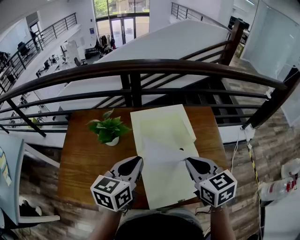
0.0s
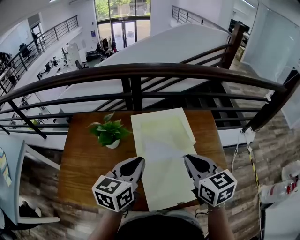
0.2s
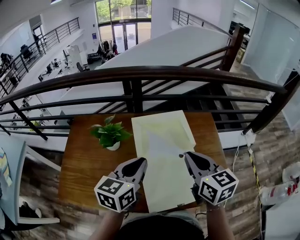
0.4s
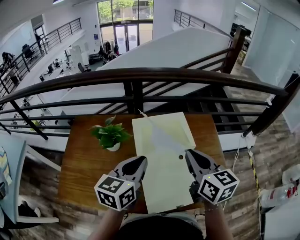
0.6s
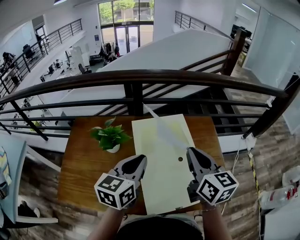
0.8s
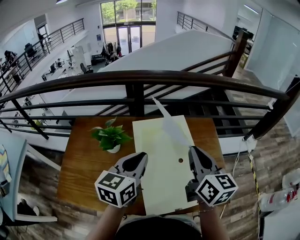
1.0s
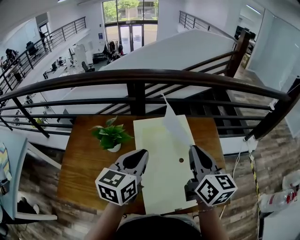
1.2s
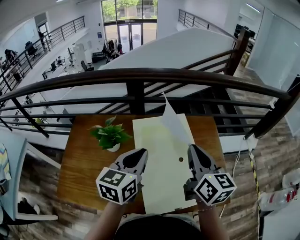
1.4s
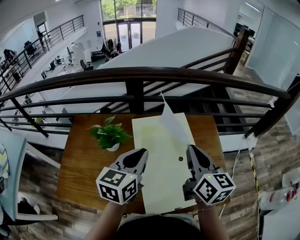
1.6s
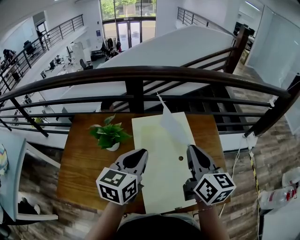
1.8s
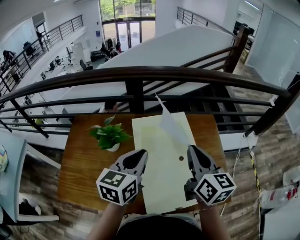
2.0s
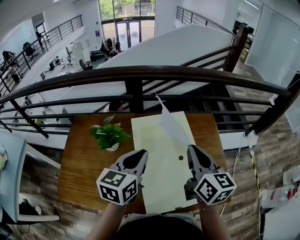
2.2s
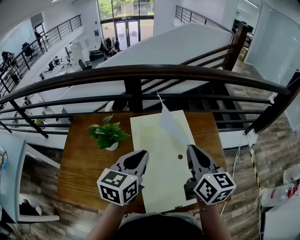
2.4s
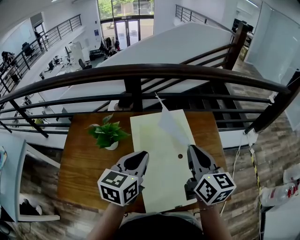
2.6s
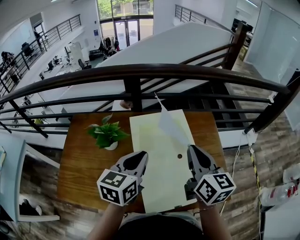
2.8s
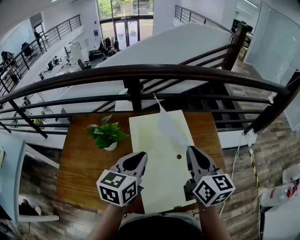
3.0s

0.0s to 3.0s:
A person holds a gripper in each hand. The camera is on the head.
0.0s to 1.6s: The right gripper shifts roughly 10 cm upward and forward, and rotates about 30 degrees; the left gripper changes place by about 5 cm.
1.6s to 3.0s: The grippers make only small movements.

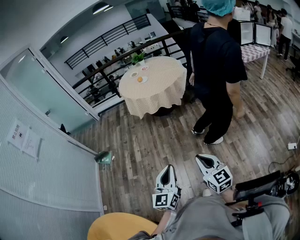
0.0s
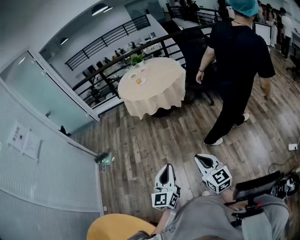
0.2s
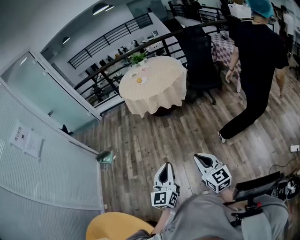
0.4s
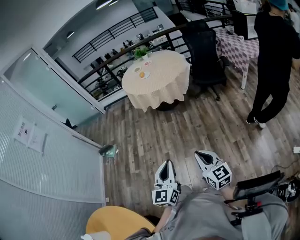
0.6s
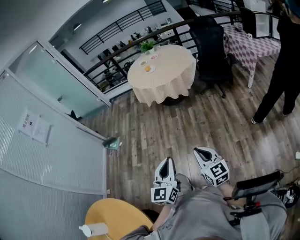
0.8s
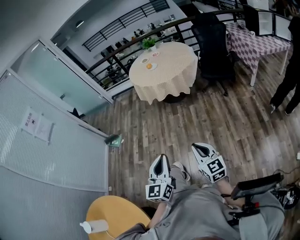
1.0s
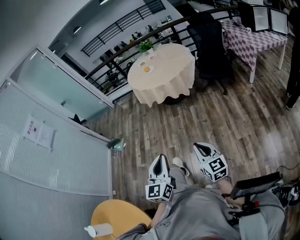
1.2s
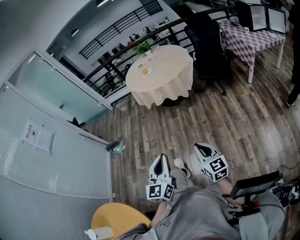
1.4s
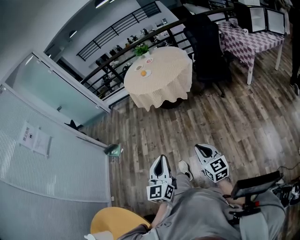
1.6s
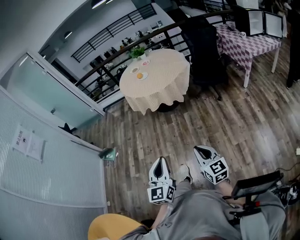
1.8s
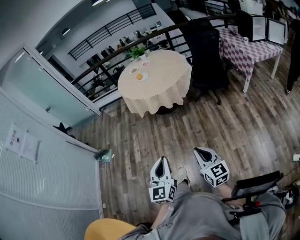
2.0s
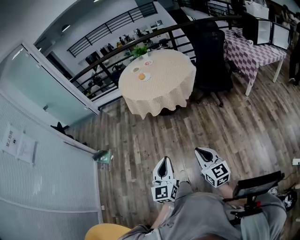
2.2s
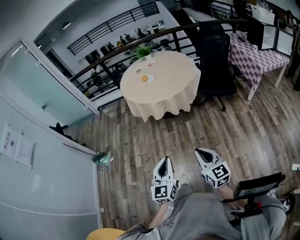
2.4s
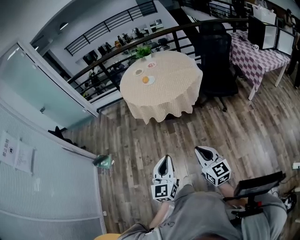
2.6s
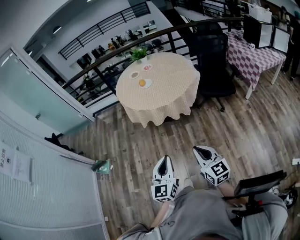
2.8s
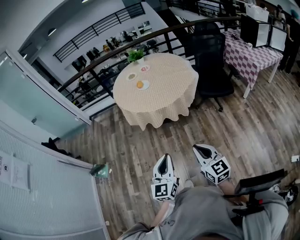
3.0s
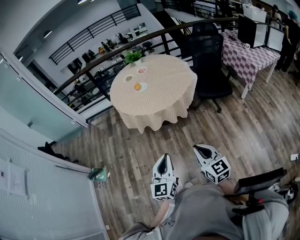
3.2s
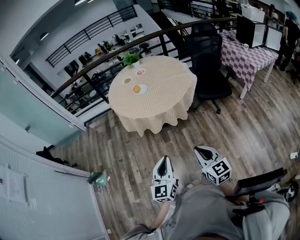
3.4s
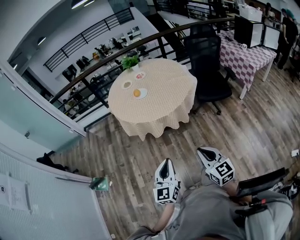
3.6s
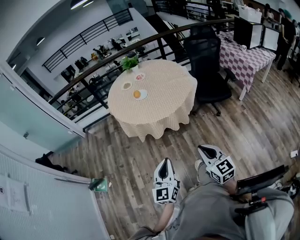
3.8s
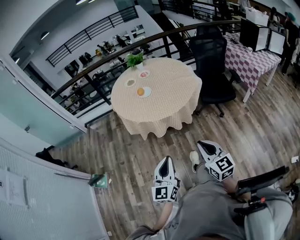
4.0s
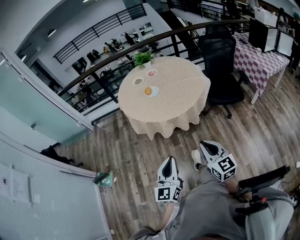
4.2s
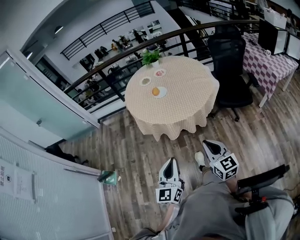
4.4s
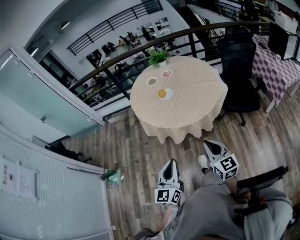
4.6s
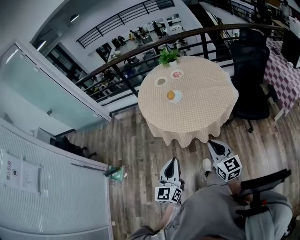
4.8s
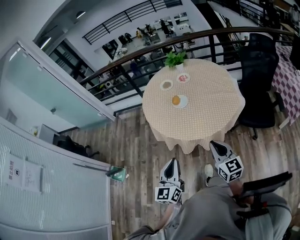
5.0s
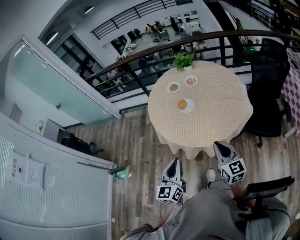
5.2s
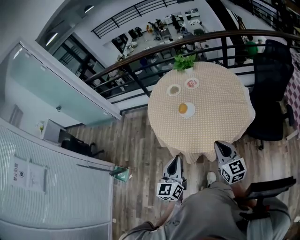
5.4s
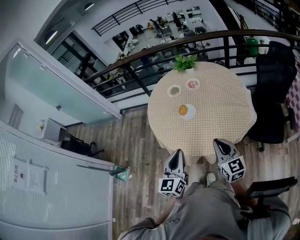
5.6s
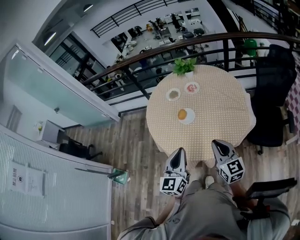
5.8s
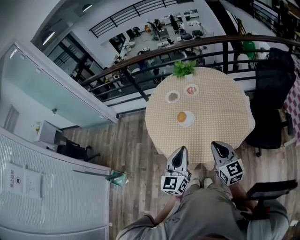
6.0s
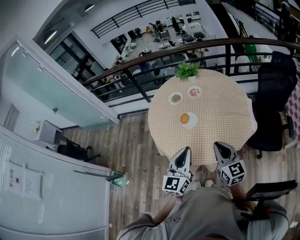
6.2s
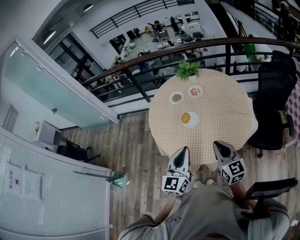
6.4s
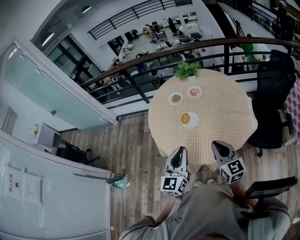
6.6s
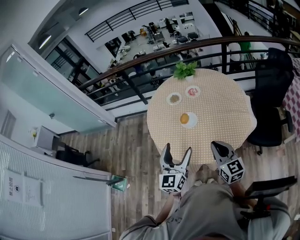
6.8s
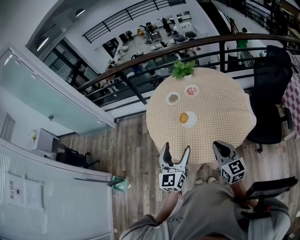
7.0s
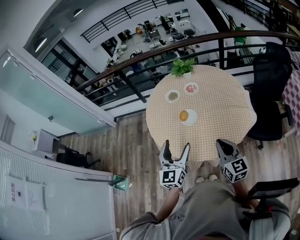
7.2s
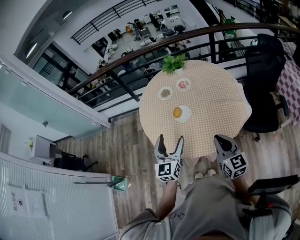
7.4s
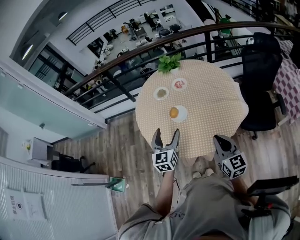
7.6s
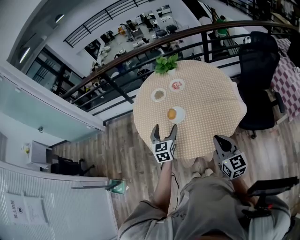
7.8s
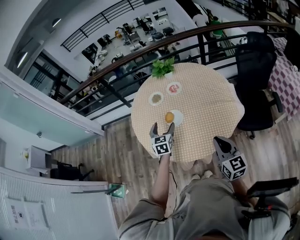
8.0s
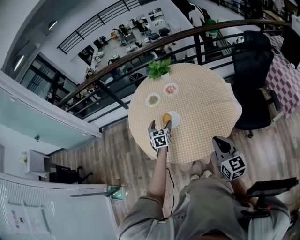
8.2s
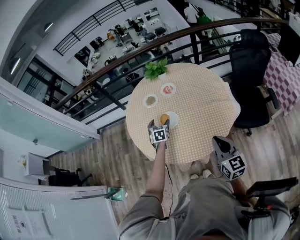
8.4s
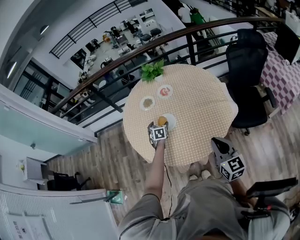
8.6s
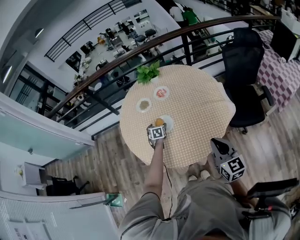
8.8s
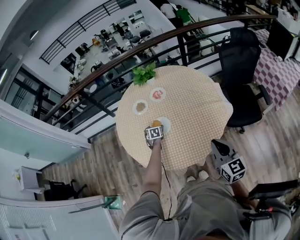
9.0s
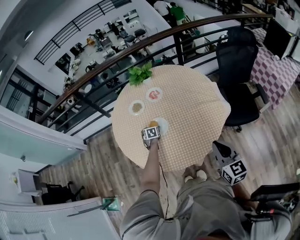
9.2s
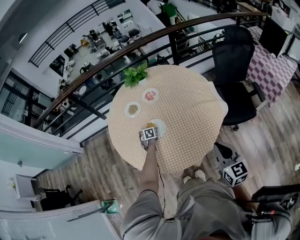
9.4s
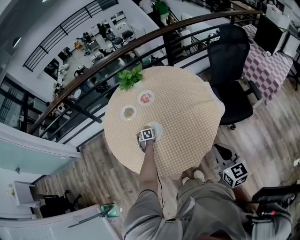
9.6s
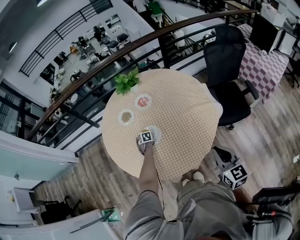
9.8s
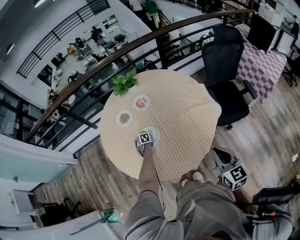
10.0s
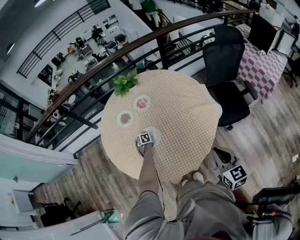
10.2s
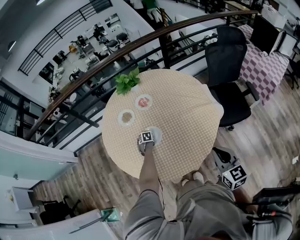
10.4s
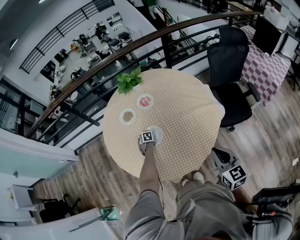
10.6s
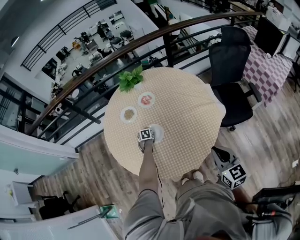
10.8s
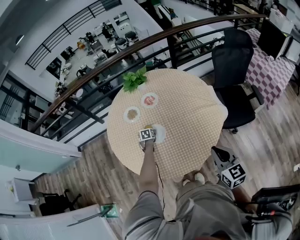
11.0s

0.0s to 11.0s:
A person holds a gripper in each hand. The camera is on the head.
0.0s to 1.6s: The right gripper heads to the right, forward and downward, covering roughly 20 cm; the left gripper travels to the right and forward by roughly 15 cm.
1.6s to 3.2s: The right gripper moves forward and to the left, roughly 40 cm, while the left gripper travels forward by about 40 cm.
3.2s to 4.8s: The grippers both shift forward by approximately 30 cm.
4.8s to 6.2s: The grippers both shift forward by roughly 30 cm.
6.2s to 7.8s: The left gripper shifts approximately 20 cm forward and downward, rotates roughly 20 degrees, and opens.
7.8s to 9.4s: The right gripper moves to the right, some 5 cm. The left gripper is displaced downward and forward by some 35 cm, and tilts its fingers some 40 degrees downward.
9.4s to 11.0s: The left gripper reaches some 10 cm downward, then returns.

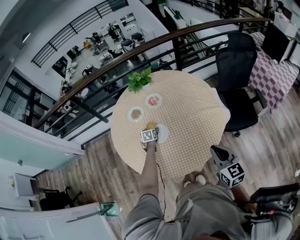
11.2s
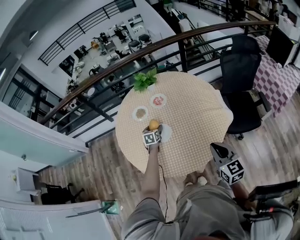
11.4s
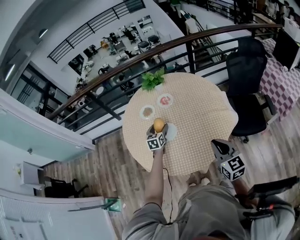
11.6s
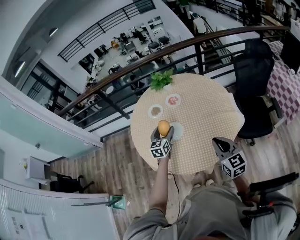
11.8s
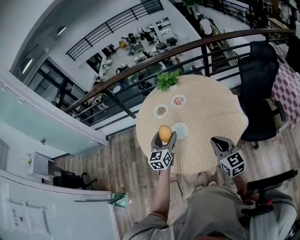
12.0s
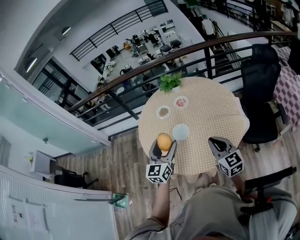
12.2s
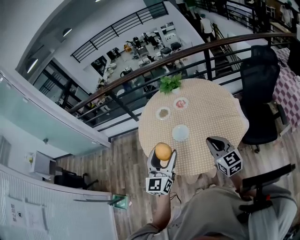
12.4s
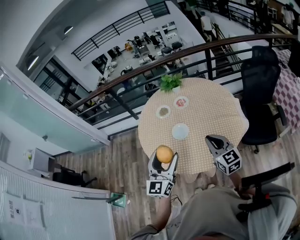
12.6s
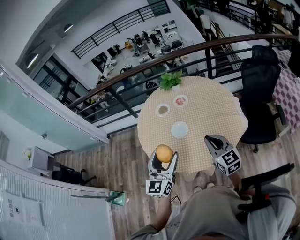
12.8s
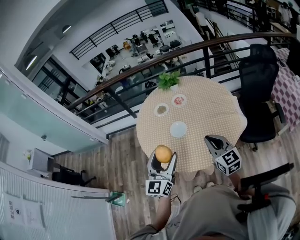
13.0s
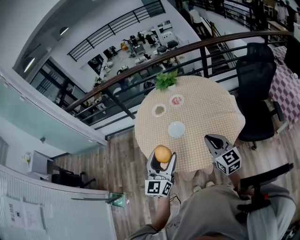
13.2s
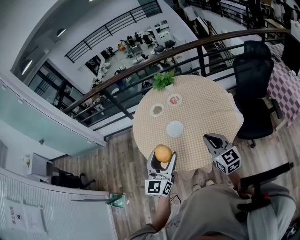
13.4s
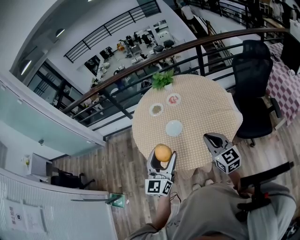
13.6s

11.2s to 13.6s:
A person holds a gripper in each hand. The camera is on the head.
11.2s to 12.4s: The right gripper moves to the left, some 5 cm; the left gripper moves upward and backward, some 50 cm, and points its fingers approximately 60 degrees further upward.
12.4s to 13.6s: The grippers make only small movements.

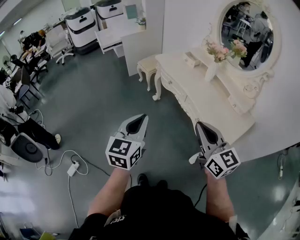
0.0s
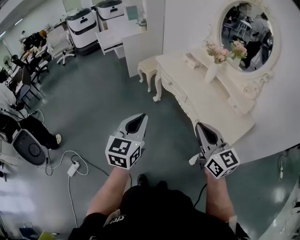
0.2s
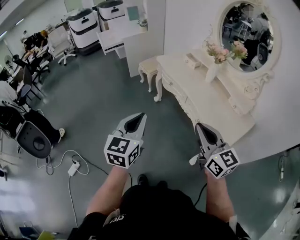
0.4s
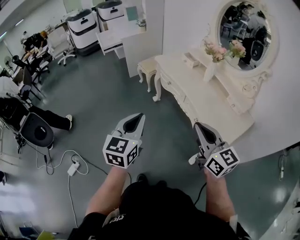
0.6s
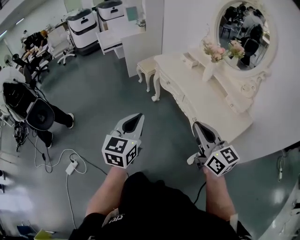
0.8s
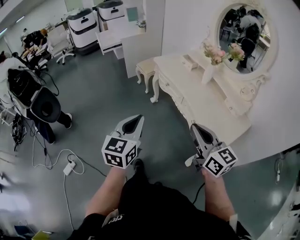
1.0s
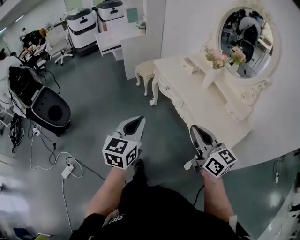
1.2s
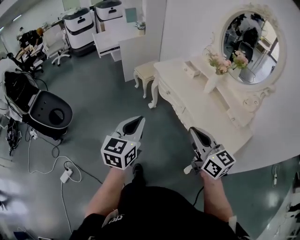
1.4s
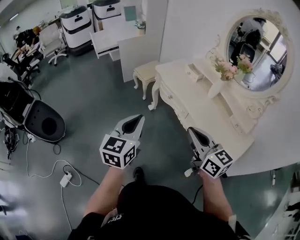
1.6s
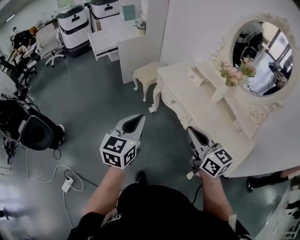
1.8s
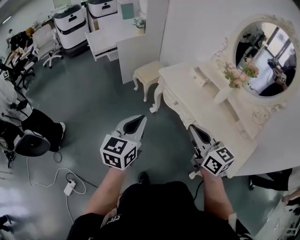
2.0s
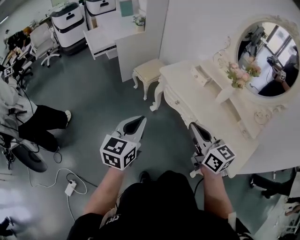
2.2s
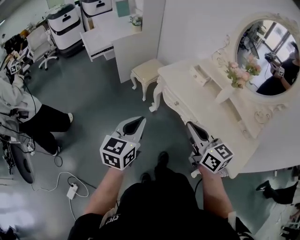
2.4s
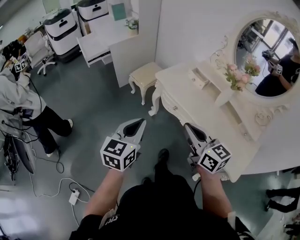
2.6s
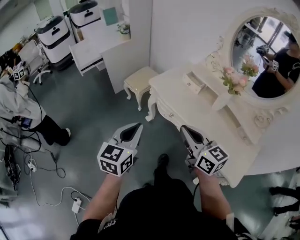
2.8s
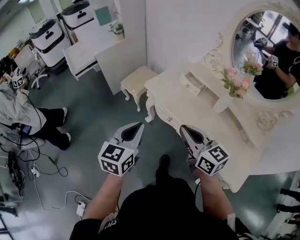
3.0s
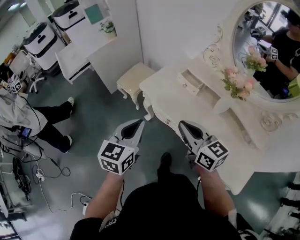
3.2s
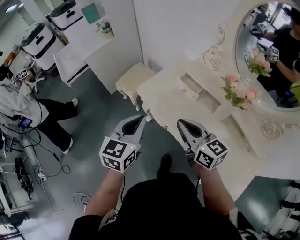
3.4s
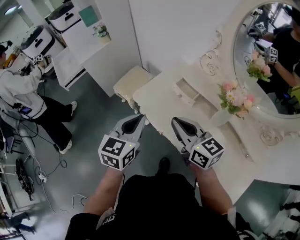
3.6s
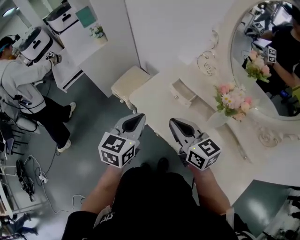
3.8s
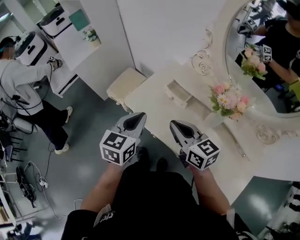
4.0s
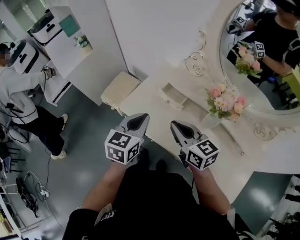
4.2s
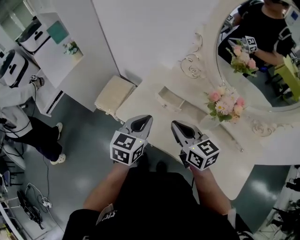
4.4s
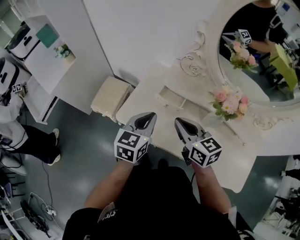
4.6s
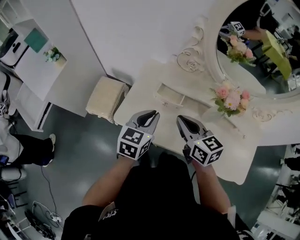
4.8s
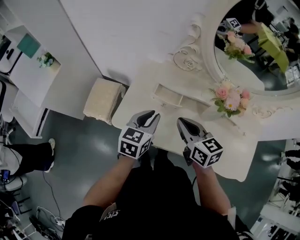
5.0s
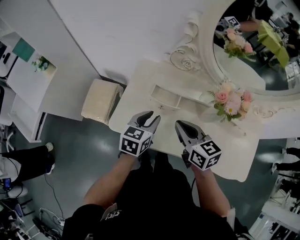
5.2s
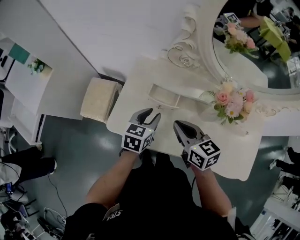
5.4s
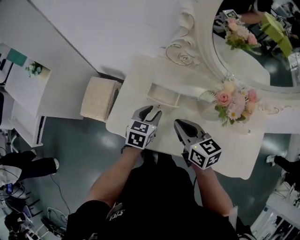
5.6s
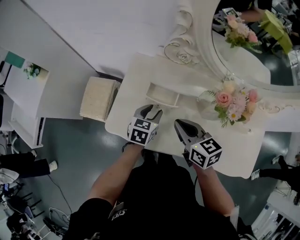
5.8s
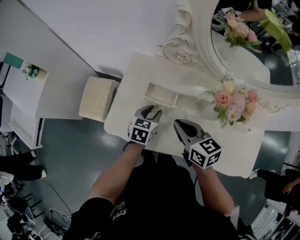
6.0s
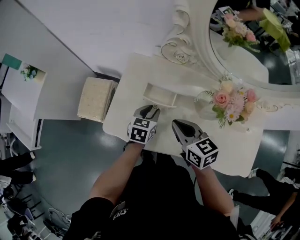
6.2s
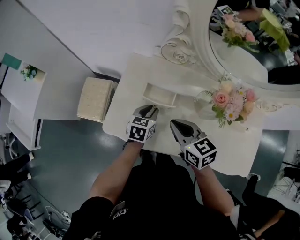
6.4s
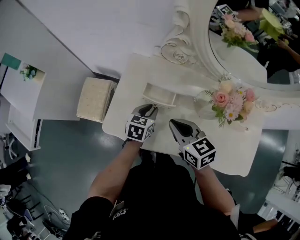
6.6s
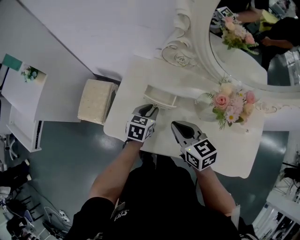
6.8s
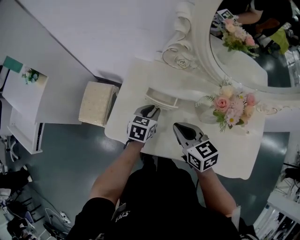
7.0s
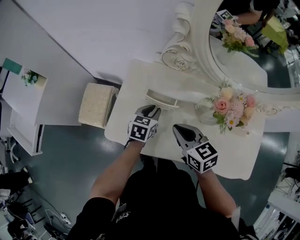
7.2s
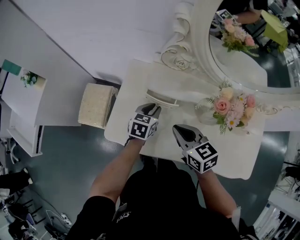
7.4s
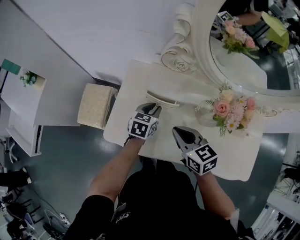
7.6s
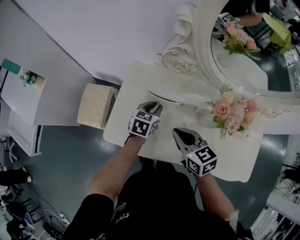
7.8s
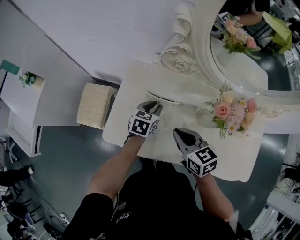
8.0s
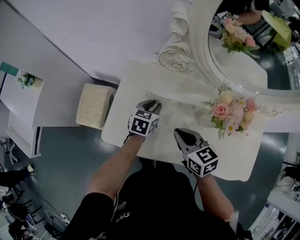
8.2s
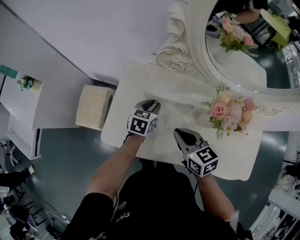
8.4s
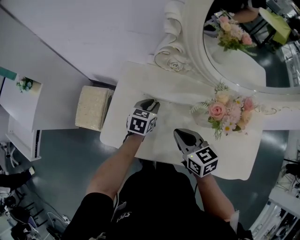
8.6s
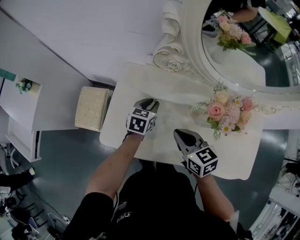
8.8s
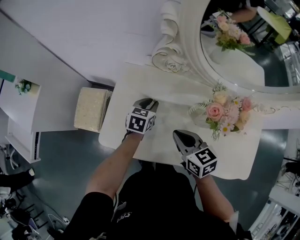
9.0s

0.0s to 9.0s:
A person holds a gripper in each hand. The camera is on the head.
0.0s to 1.6s: Both grippers move forward, about 15 cm.
1.6s to 3.0s: Both grippers travel together forward, some 25 cm.
3.0s to 4.4s: Both grippers travel together forward and to the right, some 25 cm.
4.4s to 6.0s: The left gripper moves downward and forward, roughly 20 cm, rotates roughly 20 degrees, and opens. Meanwhile the right gripper travels downward and forward by some 10 cm, and rotates approximately 20 degrees.
6.0s to 7.6s: The left gripper shifts by approximately 5 cm.
7.6s to 9.0s: The grippers make only small movements.
